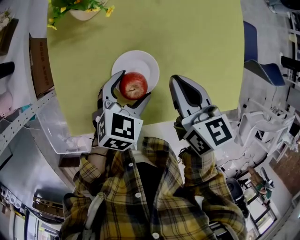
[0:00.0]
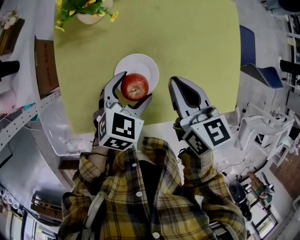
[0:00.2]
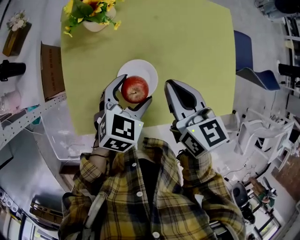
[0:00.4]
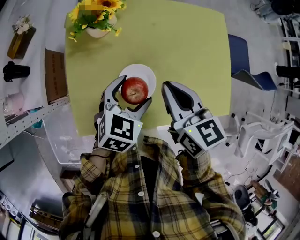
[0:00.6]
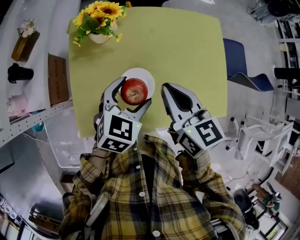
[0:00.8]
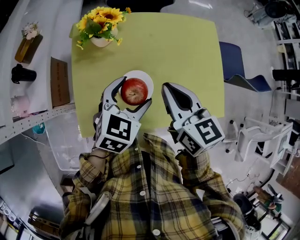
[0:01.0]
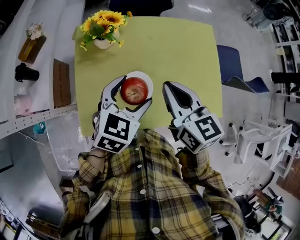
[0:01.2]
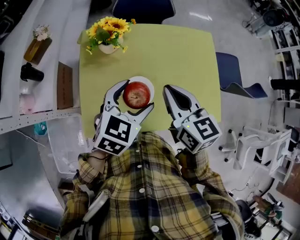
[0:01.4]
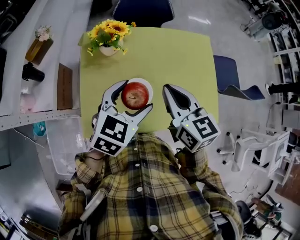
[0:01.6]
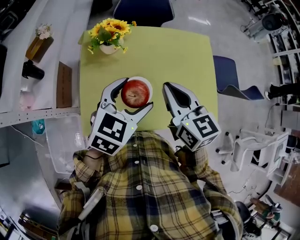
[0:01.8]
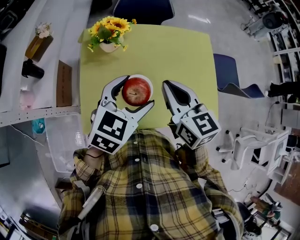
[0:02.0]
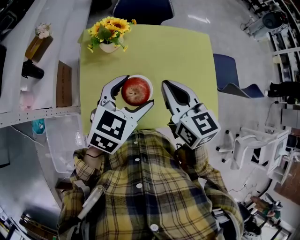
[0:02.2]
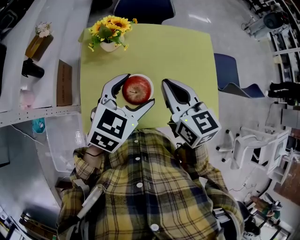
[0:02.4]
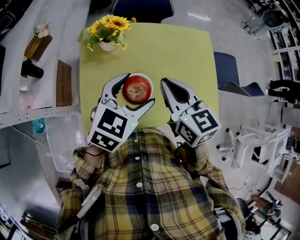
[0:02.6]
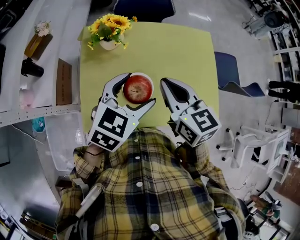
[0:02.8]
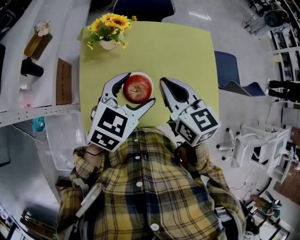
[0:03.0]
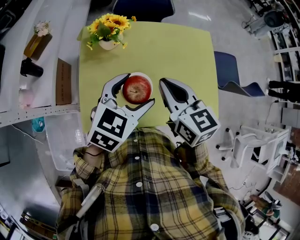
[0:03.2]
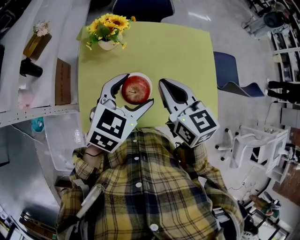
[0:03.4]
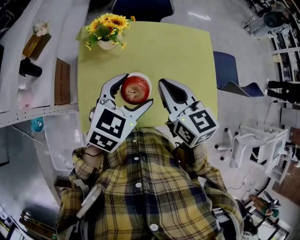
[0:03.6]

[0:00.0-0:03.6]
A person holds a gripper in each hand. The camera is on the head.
0:00.0 to 0:01.8: The grippers both shift upward by about 20 cm.
0:01.8 to 0:03.6: The grippers stay close to where they were, moving slightly.

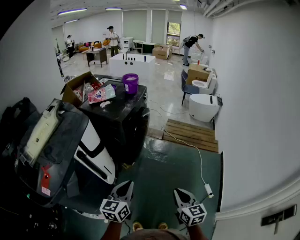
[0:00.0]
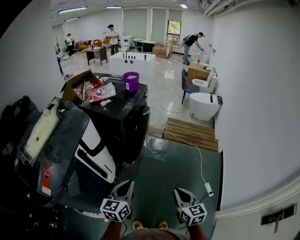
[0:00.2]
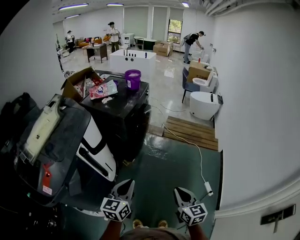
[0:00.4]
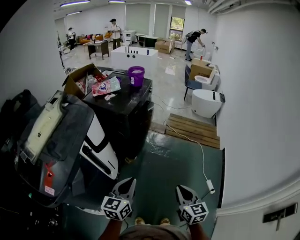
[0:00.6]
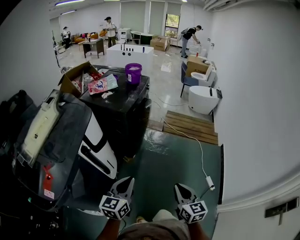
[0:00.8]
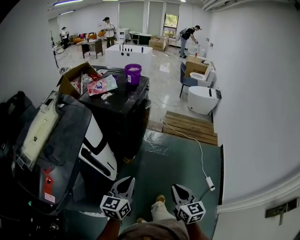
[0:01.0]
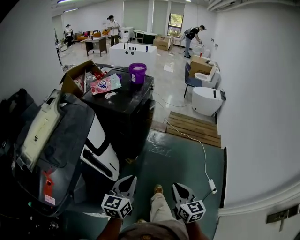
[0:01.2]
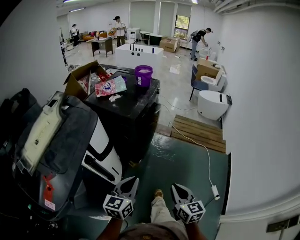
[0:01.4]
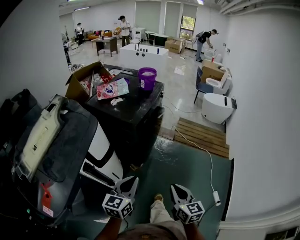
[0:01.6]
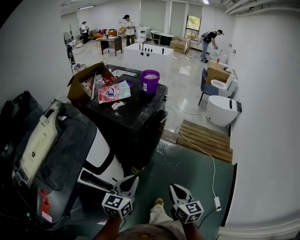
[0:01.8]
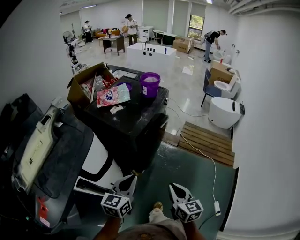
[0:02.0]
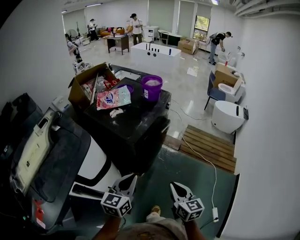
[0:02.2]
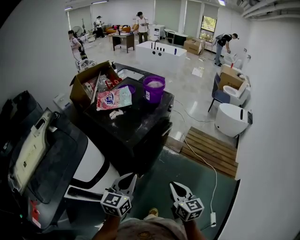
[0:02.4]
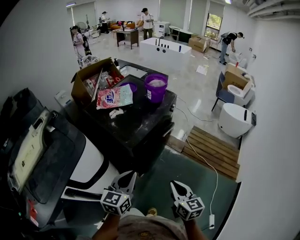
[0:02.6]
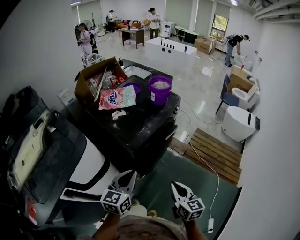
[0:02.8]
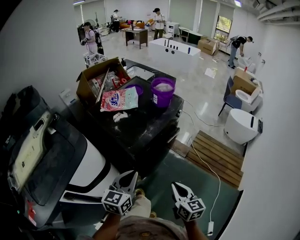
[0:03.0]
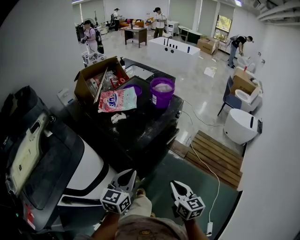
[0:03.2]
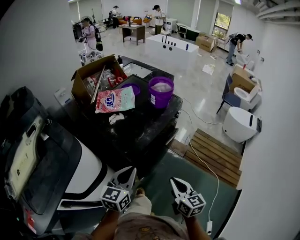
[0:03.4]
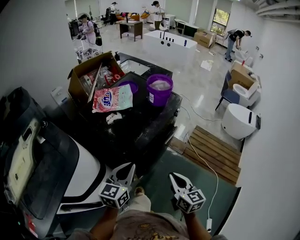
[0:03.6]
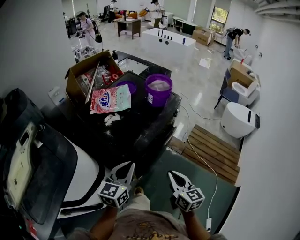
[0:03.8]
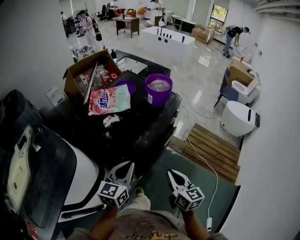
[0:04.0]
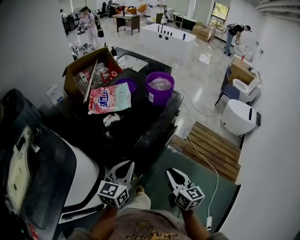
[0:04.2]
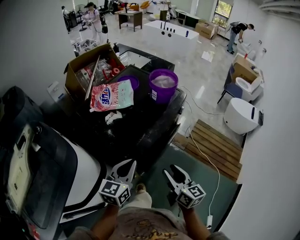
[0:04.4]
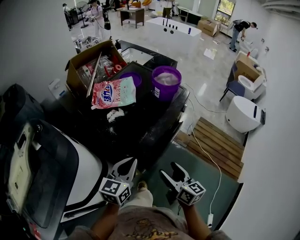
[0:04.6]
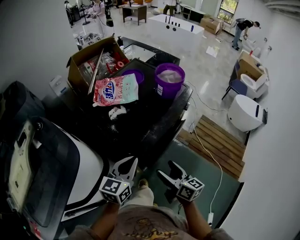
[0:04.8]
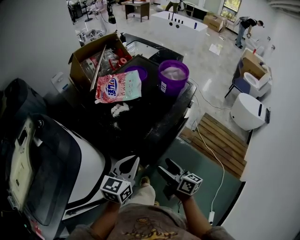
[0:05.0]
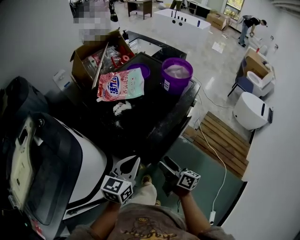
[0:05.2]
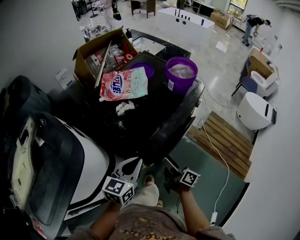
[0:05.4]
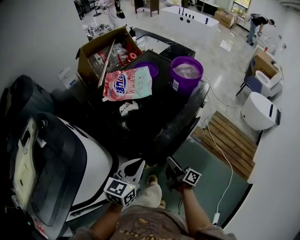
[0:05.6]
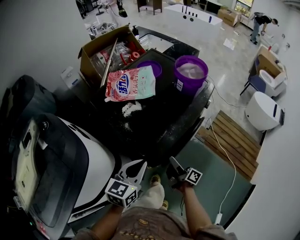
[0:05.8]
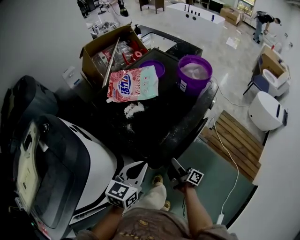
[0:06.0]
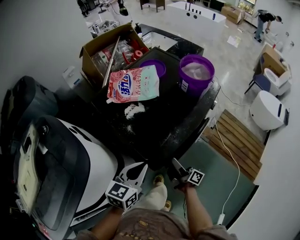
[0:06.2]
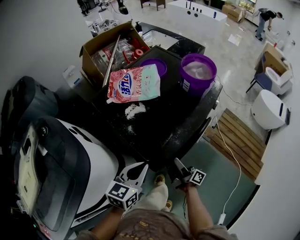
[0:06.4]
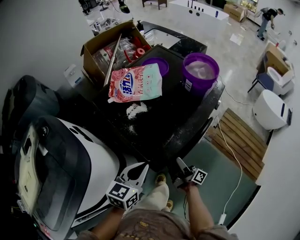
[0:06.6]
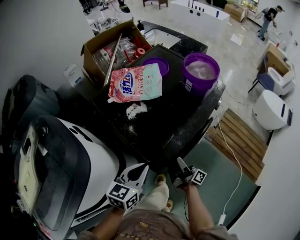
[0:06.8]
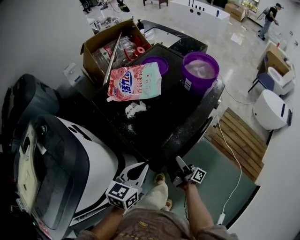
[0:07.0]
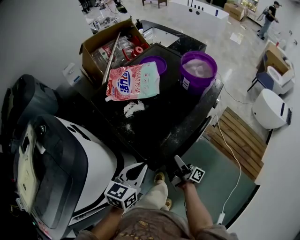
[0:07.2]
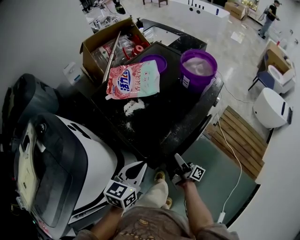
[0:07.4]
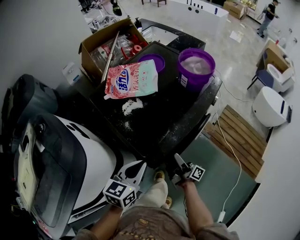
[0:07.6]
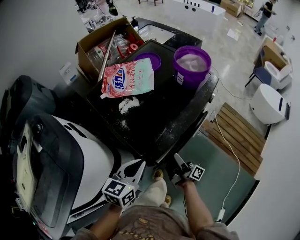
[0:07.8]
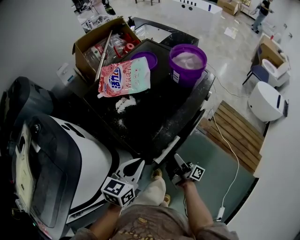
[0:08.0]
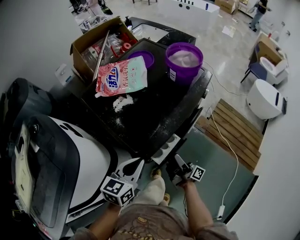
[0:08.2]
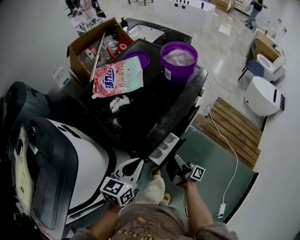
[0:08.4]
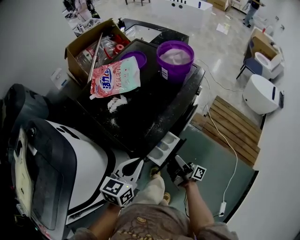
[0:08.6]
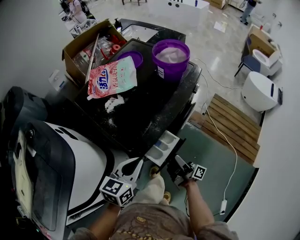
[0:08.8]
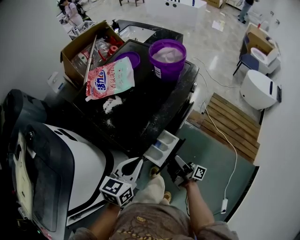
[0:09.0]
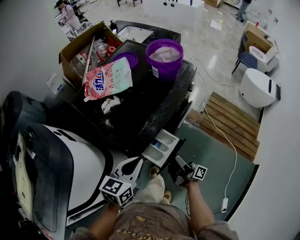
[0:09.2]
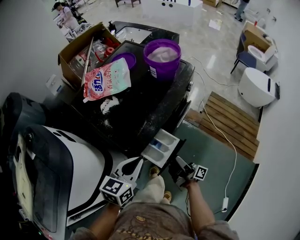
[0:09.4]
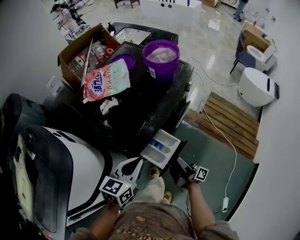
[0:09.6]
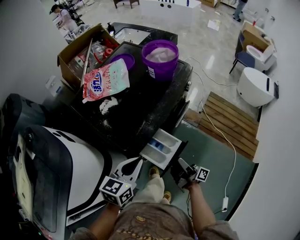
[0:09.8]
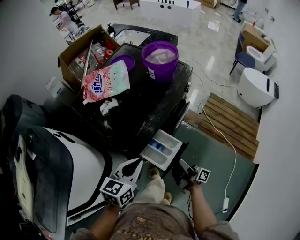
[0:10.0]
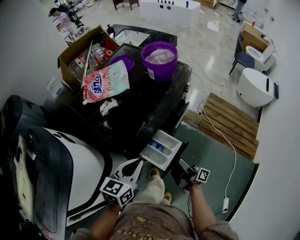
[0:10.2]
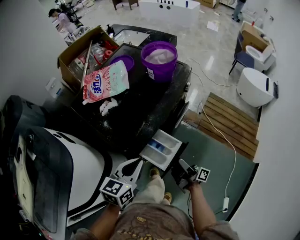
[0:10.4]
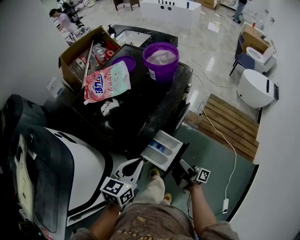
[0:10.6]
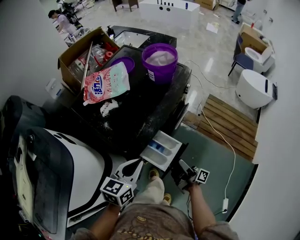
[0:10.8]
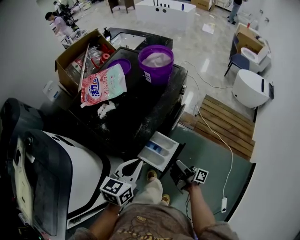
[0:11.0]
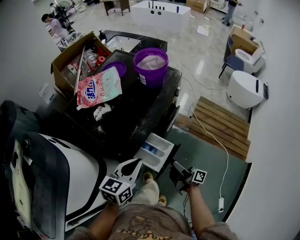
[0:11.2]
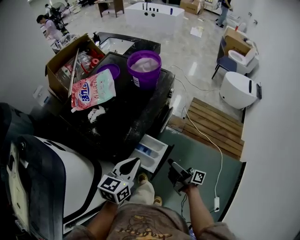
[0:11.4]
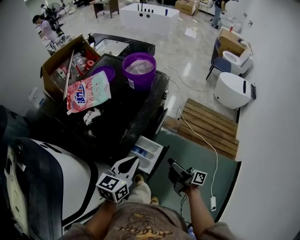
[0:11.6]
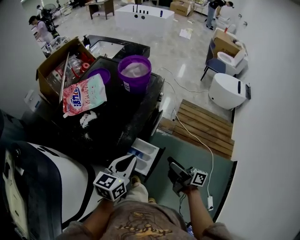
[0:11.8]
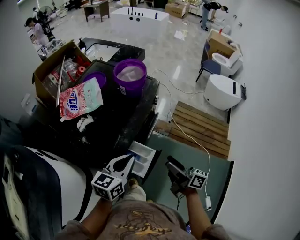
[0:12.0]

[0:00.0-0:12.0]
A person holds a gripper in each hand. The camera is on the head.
0:00.0 to 0:01.6: The grippers both shift forward and to the left by about 20 cm.
0:01.6 to 0:03.0: The grippers both shift forward by some 30 cm.
0:03.0 to 0:04.4: Both grippers travel together forward, approximately 15 cm. The right gripper opens.
0:04.4 to 0:06.0: The left gripper moves downward, roughly 5 cm, while the right gripper moves downward, forward and to the left, some 20 cm, twists some 50 degrees clockwise, seen from behind, and opens.
0:06.0 to 0:07.6: The grippers make only small movements.
0:07.6 to 0:09.0: The left gripper travels to the right by some 5 cm, while the right gripper goes about 10 cm to the right and backward.
0:09.0 to 0:10.4: The grippers move only a little.
0:10.4 to 0:12.0: The right gripper travels upward and to the right by approximately 15 cm, and rotates about 30 degrees. The left gripper goes roughly 5 cm to the right.

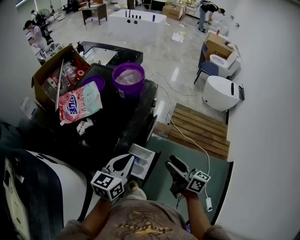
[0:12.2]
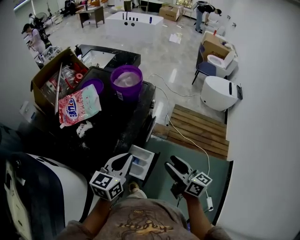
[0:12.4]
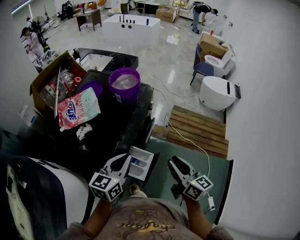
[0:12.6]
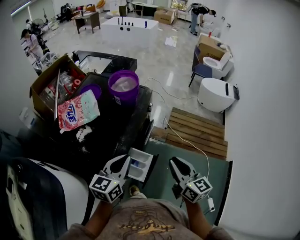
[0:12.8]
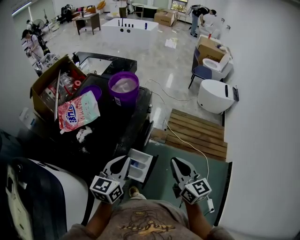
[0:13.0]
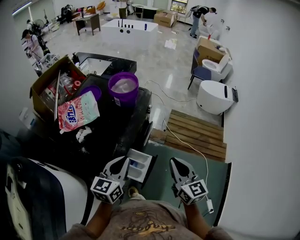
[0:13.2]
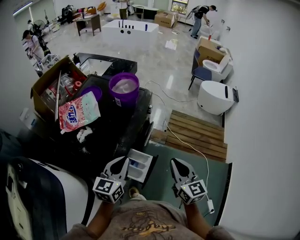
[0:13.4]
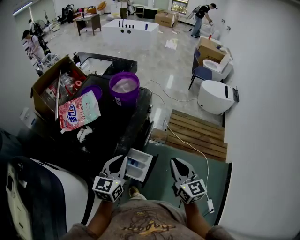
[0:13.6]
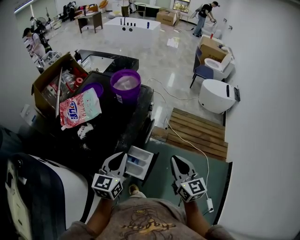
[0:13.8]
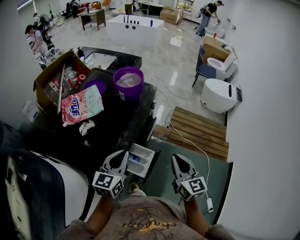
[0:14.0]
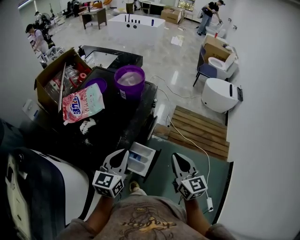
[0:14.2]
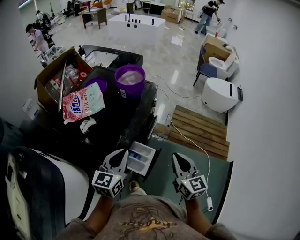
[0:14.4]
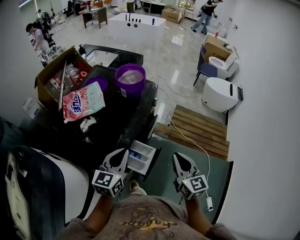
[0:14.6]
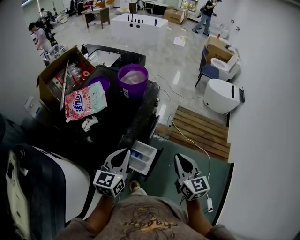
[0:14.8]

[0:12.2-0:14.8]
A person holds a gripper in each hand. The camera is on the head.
0:12.2 to 0:13.4: The right gripper goes roughly 5 cm upward, changes its angle by about 40 degrees, and closes.
0:13.4 to 0:14.8: The grippers make only small movements.

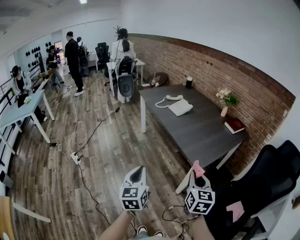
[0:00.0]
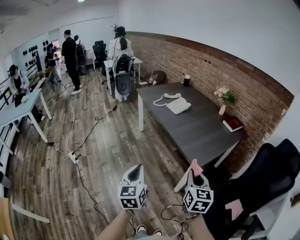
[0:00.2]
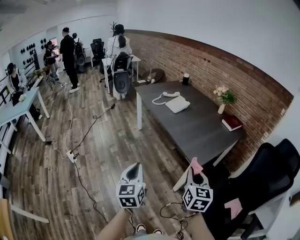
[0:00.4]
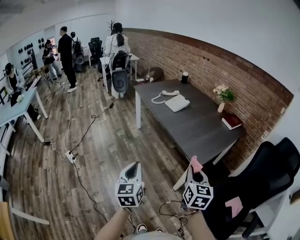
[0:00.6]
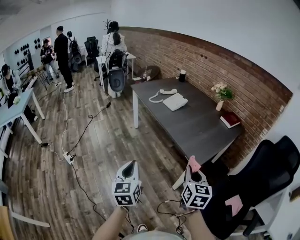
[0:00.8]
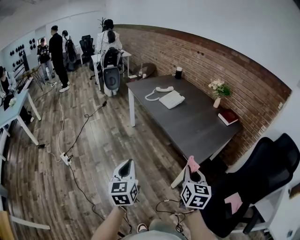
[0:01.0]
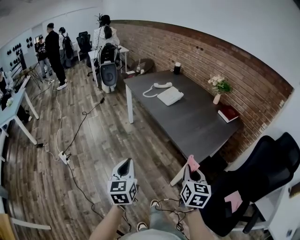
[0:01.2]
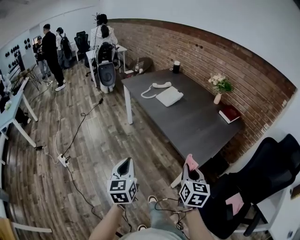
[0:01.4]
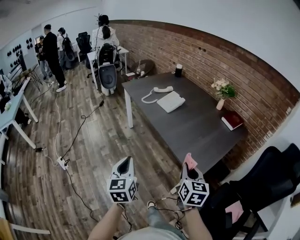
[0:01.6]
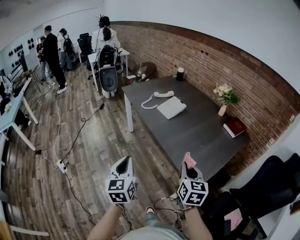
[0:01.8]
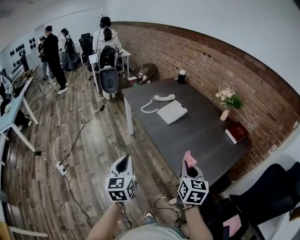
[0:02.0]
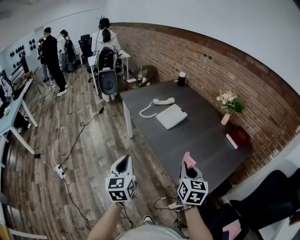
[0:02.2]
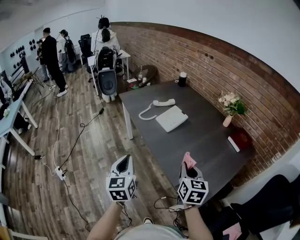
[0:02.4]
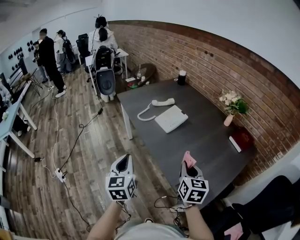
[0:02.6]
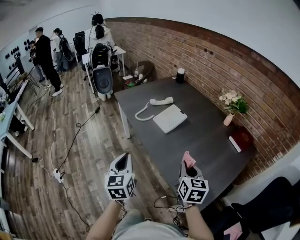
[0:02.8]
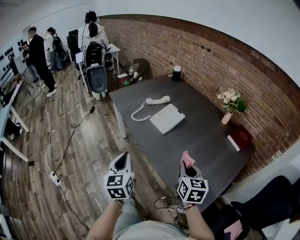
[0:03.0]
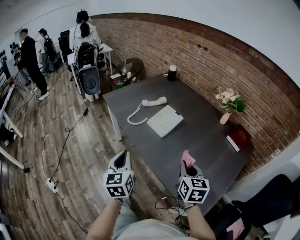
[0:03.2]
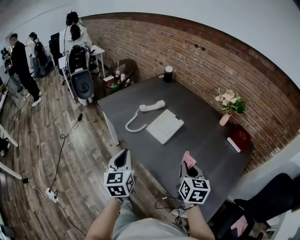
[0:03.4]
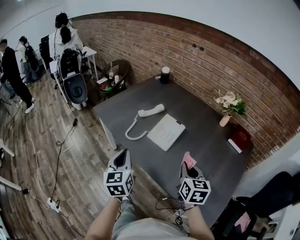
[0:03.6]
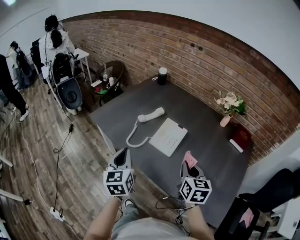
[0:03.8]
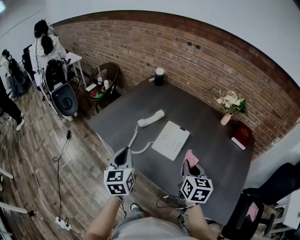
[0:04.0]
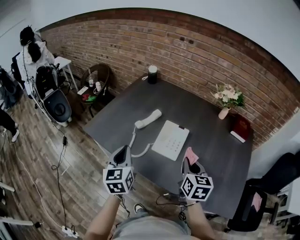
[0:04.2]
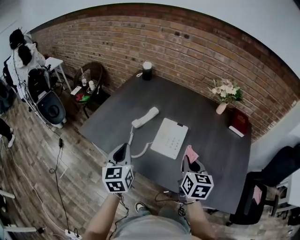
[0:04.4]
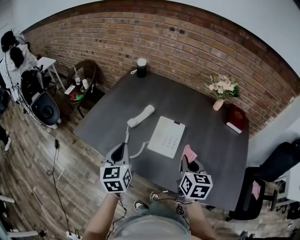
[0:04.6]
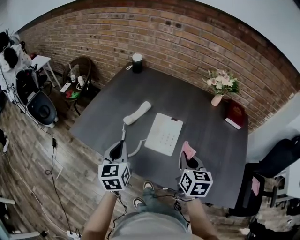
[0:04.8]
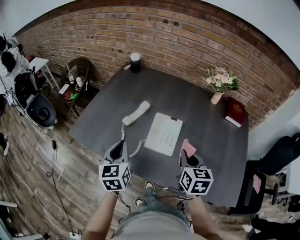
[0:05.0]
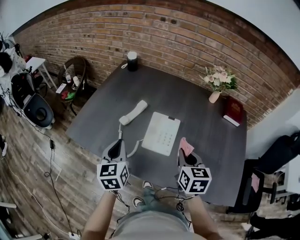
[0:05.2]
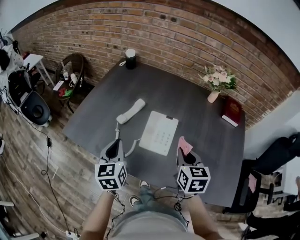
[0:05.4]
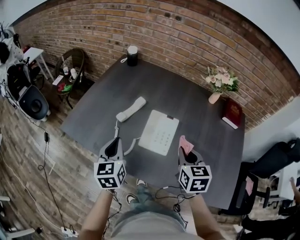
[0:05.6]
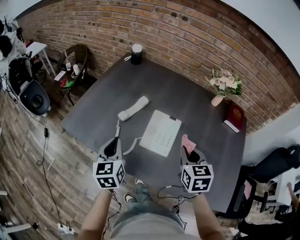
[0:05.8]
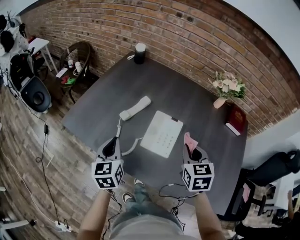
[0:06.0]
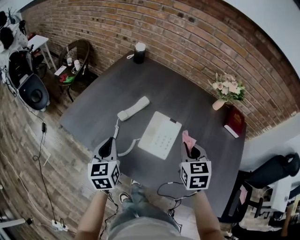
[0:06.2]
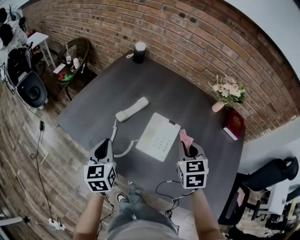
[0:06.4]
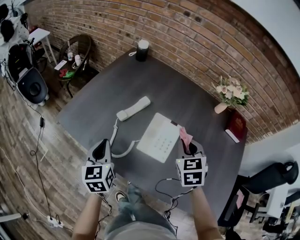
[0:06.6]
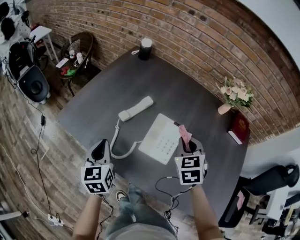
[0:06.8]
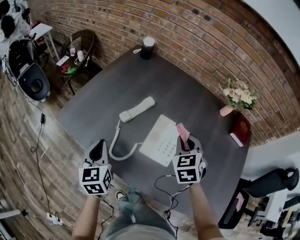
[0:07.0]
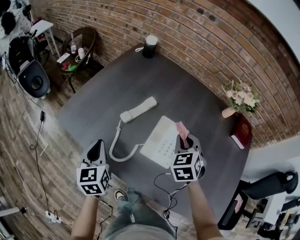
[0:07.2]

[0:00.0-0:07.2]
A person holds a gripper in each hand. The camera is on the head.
0:00.0 to 0:01.4: The left gripper moves forward, about 15 cm; the right gripper is displaced forward and downward by roughly 15 cm.
0:01.4 to 0:02.8: Both grippers travel together forward, about 30 cm.
0:02.8 to 0:04.4: The left gripper shifts by roughly 40 cm, and turns by approximately 30 degrees. Meanwhile the right gripper shifts by roughly 30 cm, and changes its angle by roughly 30 degrees.
0:04.4 to 0:05.8: The right gripper moves forward, some 5 cm; the left gripper goes roughly 10 cm forward and downward.
0:05.8 to 0:07.2: The left gripper moves to the left, about 10 cm. Meanwhile the right gripper shifts about 15 cm forward, and turns by about 30 degrees.